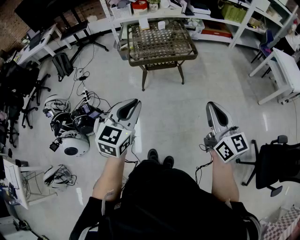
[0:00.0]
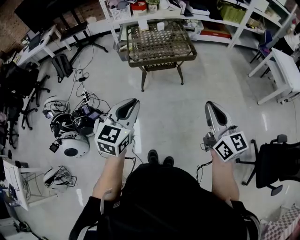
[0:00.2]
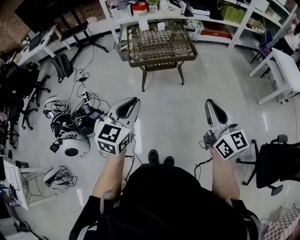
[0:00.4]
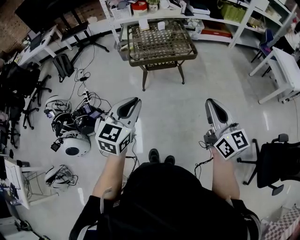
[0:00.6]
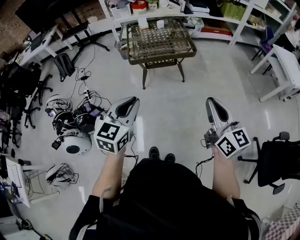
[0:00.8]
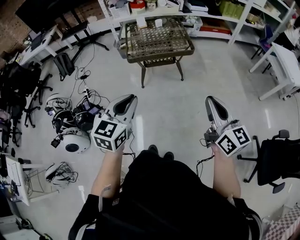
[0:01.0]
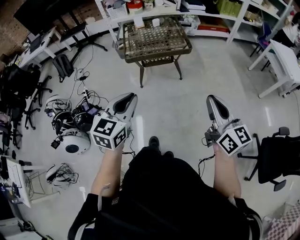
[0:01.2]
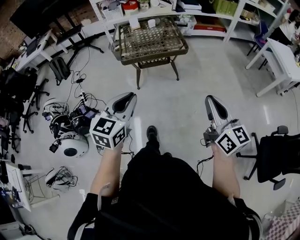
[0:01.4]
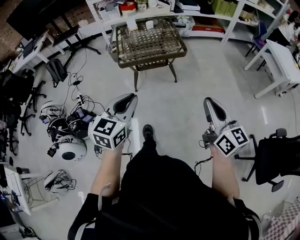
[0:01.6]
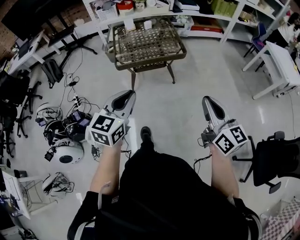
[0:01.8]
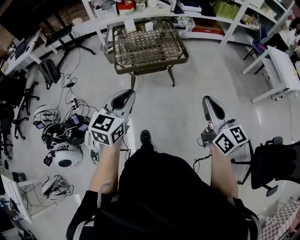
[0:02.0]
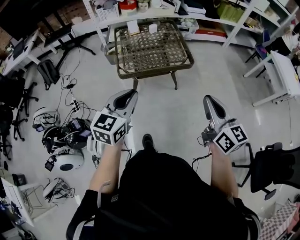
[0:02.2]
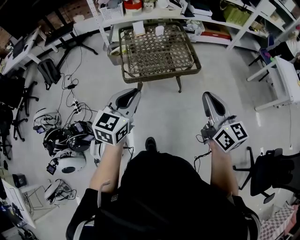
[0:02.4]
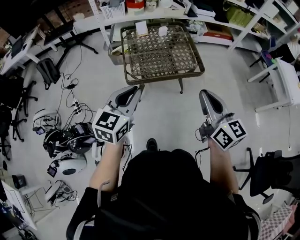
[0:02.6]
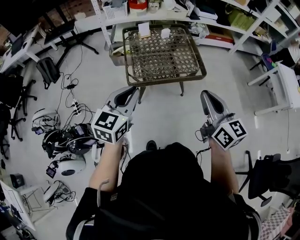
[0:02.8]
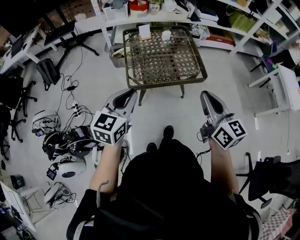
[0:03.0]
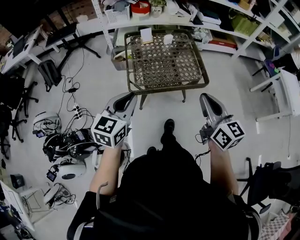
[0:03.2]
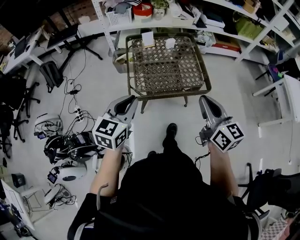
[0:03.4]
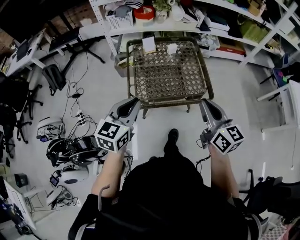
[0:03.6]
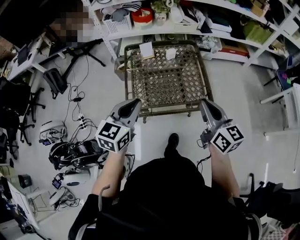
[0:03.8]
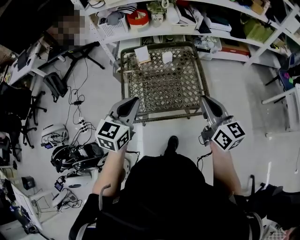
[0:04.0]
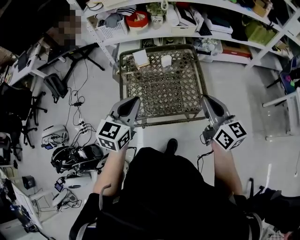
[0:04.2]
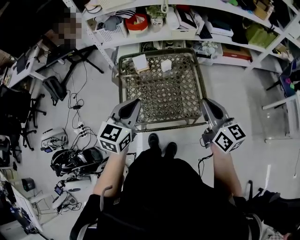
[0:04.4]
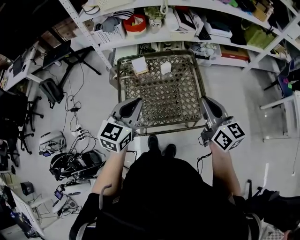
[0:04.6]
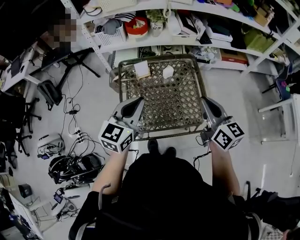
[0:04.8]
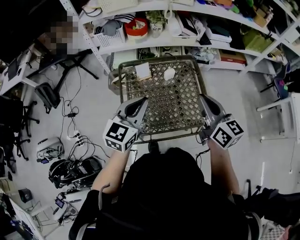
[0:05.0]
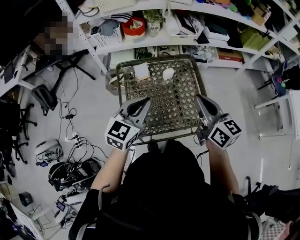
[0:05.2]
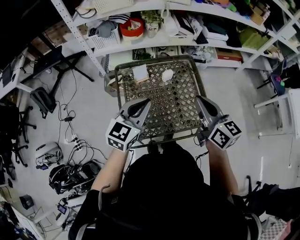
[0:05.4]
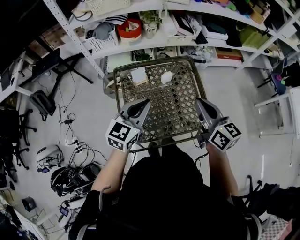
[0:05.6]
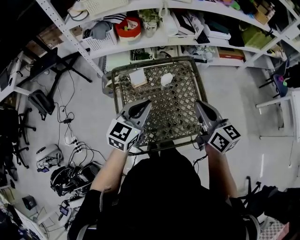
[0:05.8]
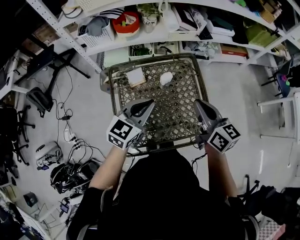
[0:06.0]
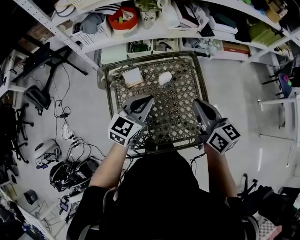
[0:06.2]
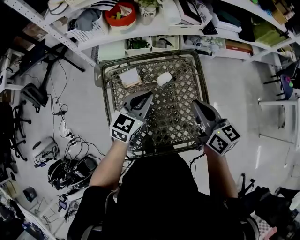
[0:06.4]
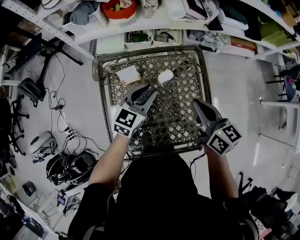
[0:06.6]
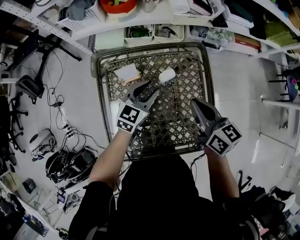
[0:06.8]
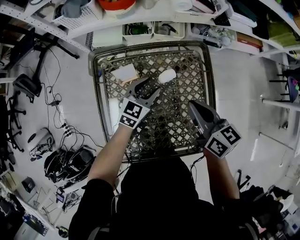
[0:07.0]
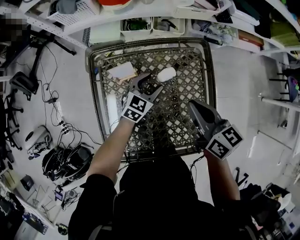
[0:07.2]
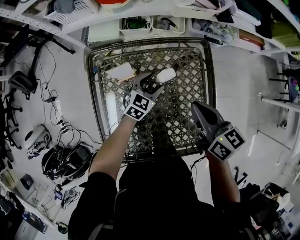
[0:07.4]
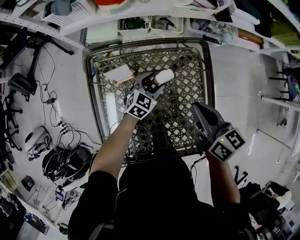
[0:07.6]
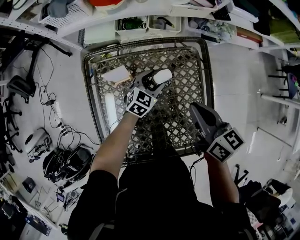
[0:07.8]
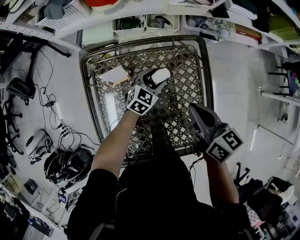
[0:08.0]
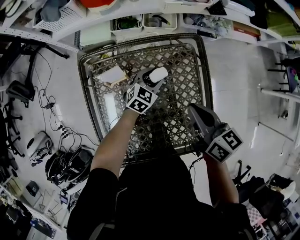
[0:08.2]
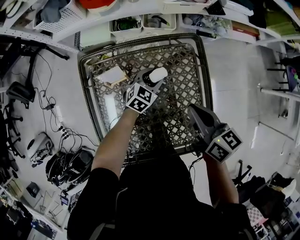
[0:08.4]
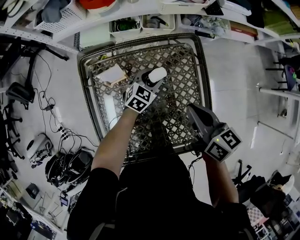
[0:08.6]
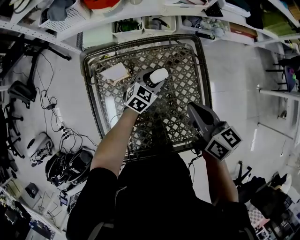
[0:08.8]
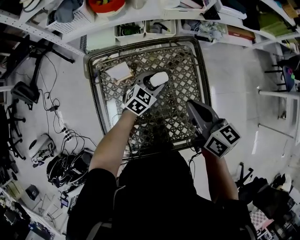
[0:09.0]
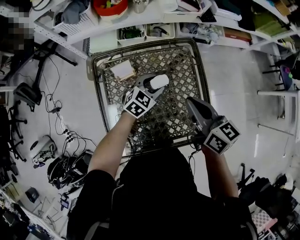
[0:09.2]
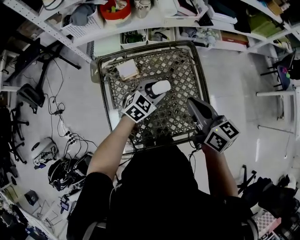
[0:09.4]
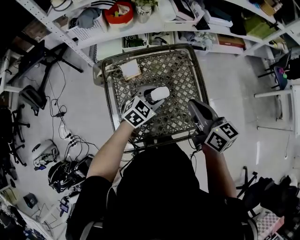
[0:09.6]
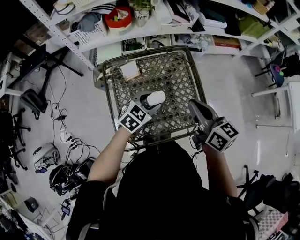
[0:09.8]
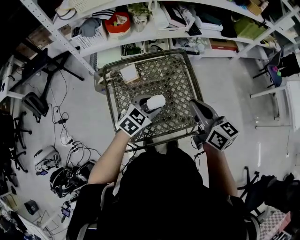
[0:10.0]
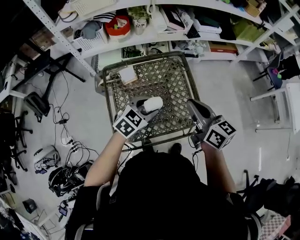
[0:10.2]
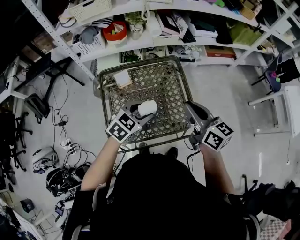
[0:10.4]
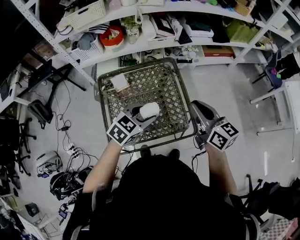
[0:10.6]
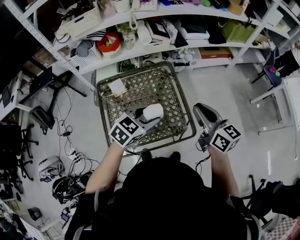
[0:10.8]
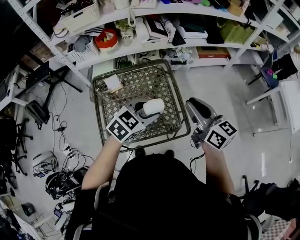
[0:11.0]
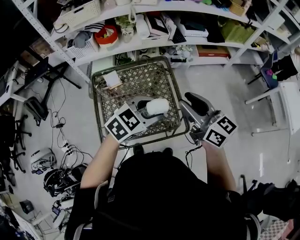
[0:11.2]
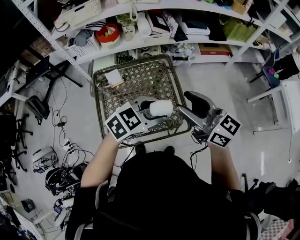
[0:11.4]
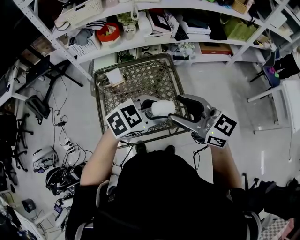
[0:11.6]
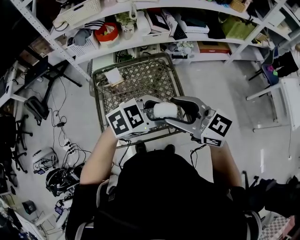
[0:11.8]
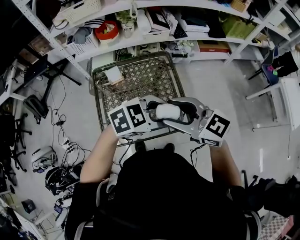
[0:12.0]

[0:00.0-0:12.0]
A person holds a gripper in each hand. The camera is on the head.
0:00.0 to 0:01.6: The left gripper moves about 5 cm, while the right gripper moves to the right, approximately 5 cm.
0:01.6 to 0:03.0: Both grippers move forward and to the left, some 35 cm.
0:03.0 to 0:04.4: The grippers both shift forward by some 30 cm.
0:04.4 to 0:06.0: The left gripper moves forward, some 15 cm. The right gripper moves forward and to the left, roughly 15 cm.
0:06.0 to 0:07.6: The right gripper goes roughly 15 cm downward and forward. The left gripper moves downward and forward, some 35 cm, and opens its fingers.
0:07.6 to 0:09.0: The left gripper shifts by some 5 cm.
0:09.0 to 0:10.4: The left gripper heads upward and backward, covering approximately 30 cm, while the right gripper shifts roughly 20 cm upward, backward and to the right.
0:10.4 to 0:12.0: The left gripper moves some 20 cm, and turns by roughly 30 degrees; the right gripper changes place by about 10 cm, rotates about 40 degrees, and opens.

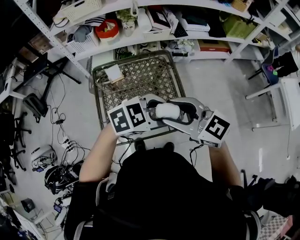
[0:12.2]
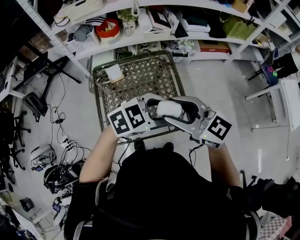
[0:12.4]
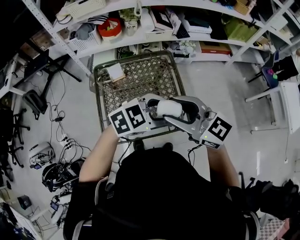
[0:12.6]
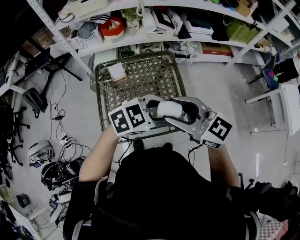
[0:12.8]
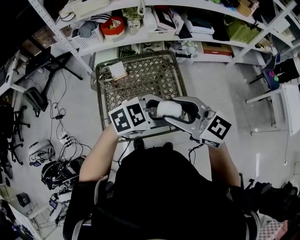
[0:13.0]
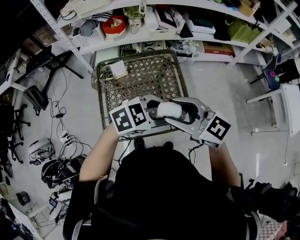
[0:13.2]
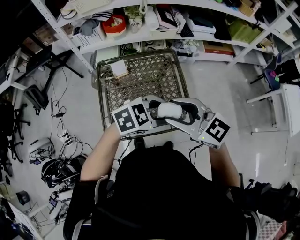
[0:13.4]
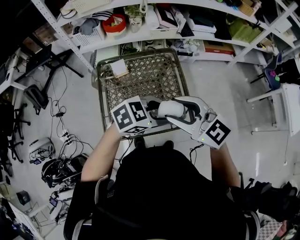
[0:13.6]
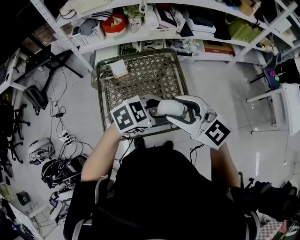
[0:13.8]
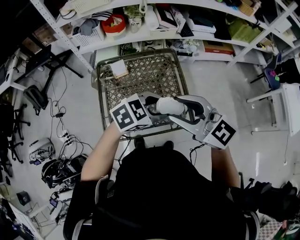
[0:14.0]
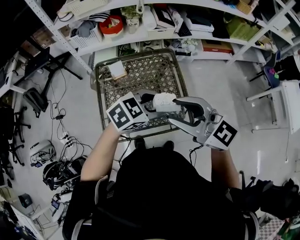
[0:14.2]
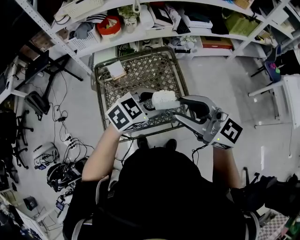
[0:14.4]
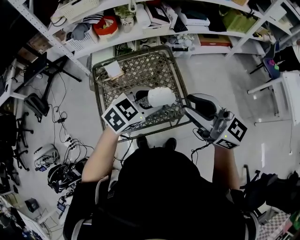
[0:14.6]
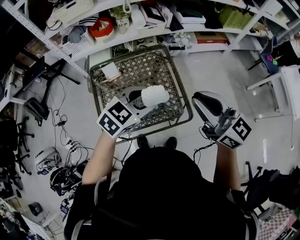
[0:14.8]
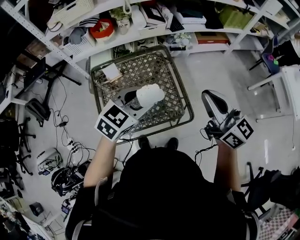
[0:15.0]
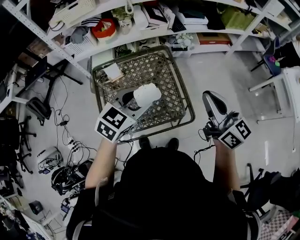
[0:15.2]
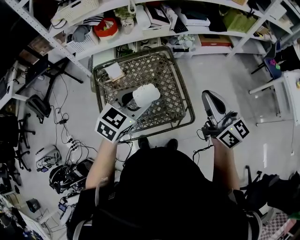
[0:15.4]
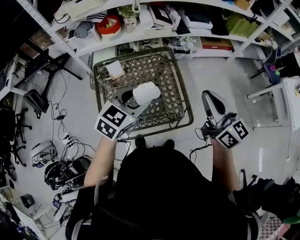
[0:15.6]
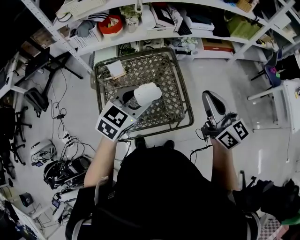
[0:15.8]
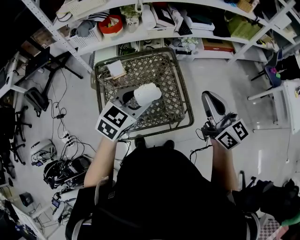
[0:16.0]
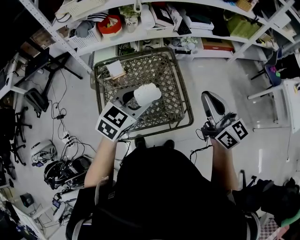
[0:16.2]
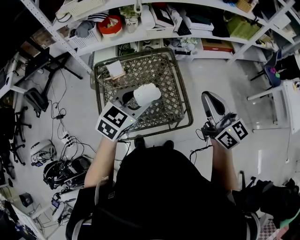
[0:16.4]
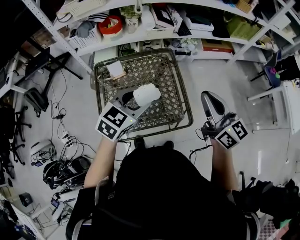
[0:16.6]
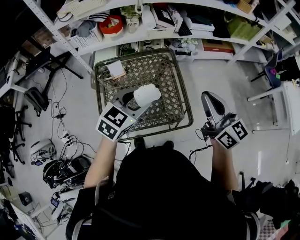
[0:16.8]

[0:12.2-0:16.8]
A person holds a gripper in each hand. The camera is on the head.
0:12.2 to 0:13.8: The grippers make only small movements.
0:13.8 to 0:15.2: The right gripper changes place by some 15 cm, turns by approximately 40 degrees, and closes. The left gripper ends up about 10 cm from where it was, and turns by some 30 degrees.
0:15.2 to 0:16.8: The grippers make only small movements.

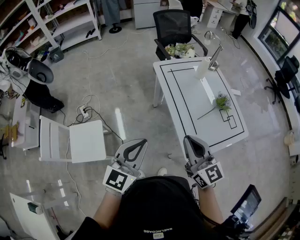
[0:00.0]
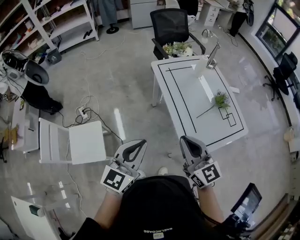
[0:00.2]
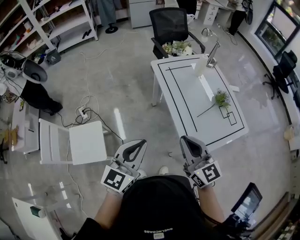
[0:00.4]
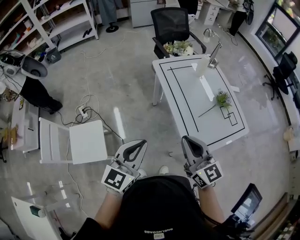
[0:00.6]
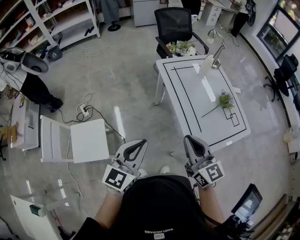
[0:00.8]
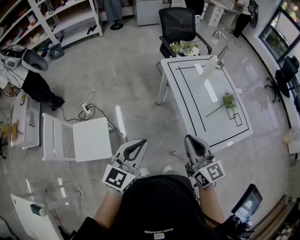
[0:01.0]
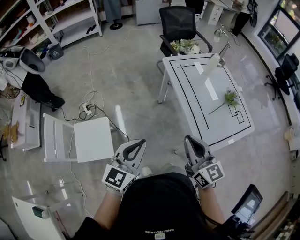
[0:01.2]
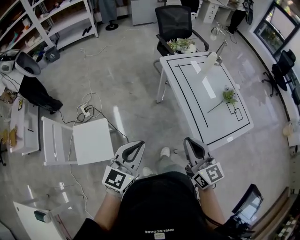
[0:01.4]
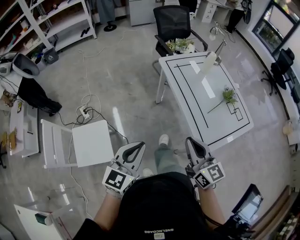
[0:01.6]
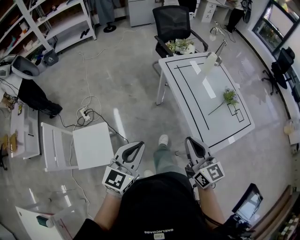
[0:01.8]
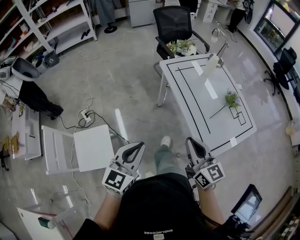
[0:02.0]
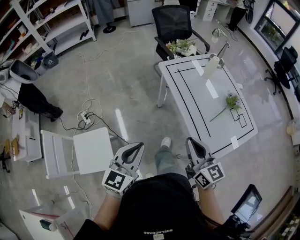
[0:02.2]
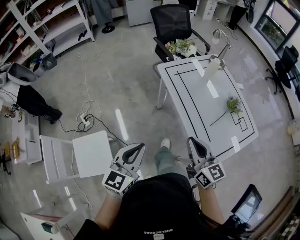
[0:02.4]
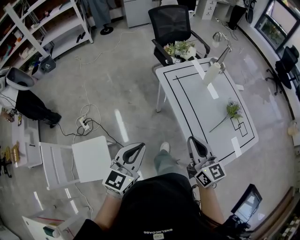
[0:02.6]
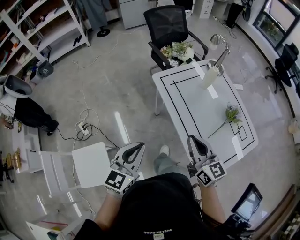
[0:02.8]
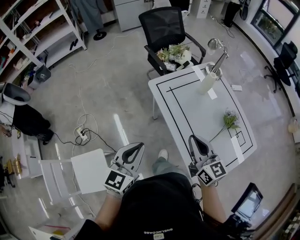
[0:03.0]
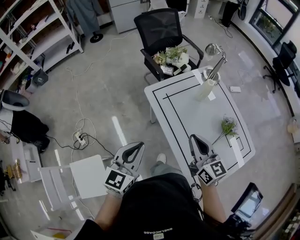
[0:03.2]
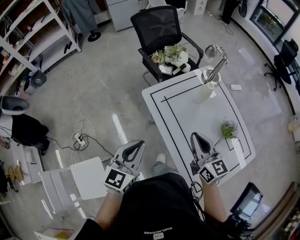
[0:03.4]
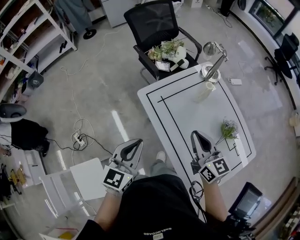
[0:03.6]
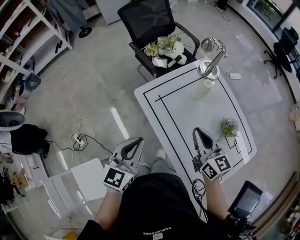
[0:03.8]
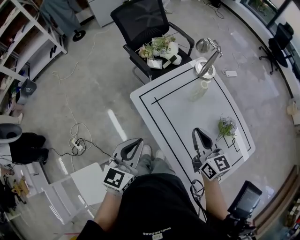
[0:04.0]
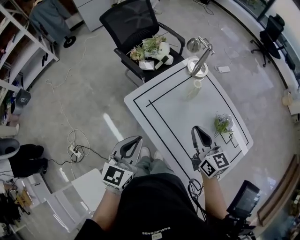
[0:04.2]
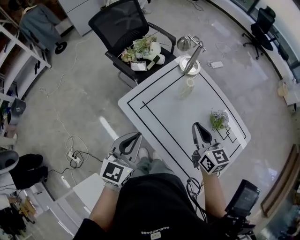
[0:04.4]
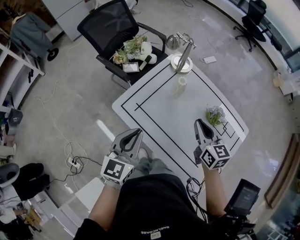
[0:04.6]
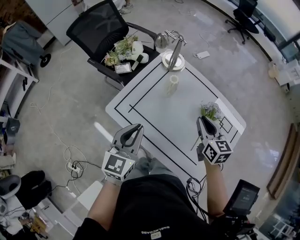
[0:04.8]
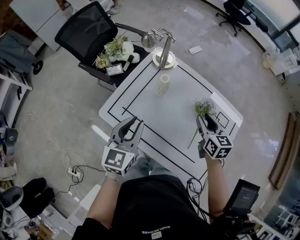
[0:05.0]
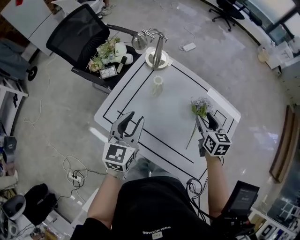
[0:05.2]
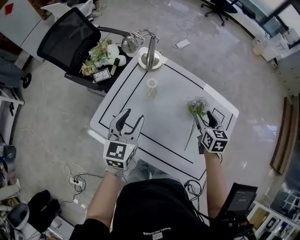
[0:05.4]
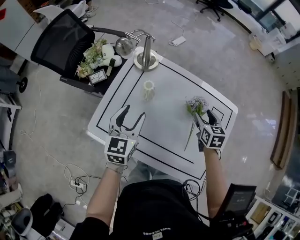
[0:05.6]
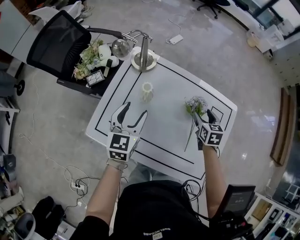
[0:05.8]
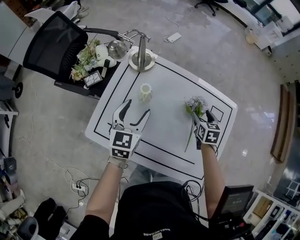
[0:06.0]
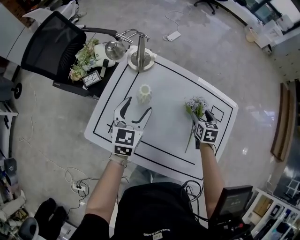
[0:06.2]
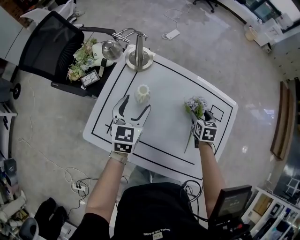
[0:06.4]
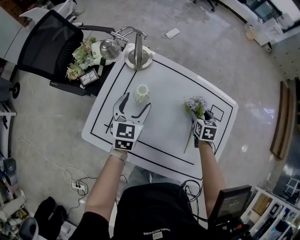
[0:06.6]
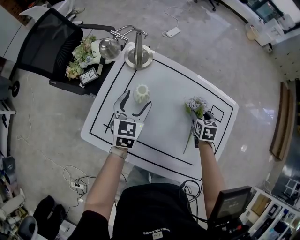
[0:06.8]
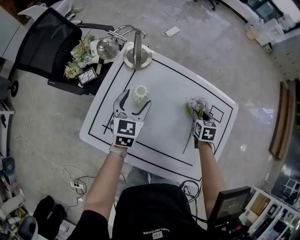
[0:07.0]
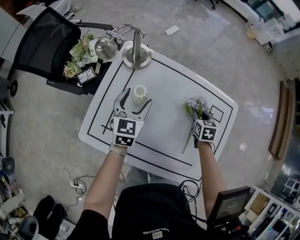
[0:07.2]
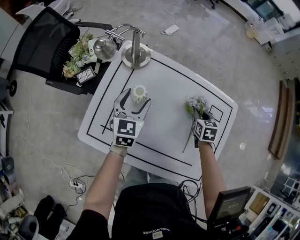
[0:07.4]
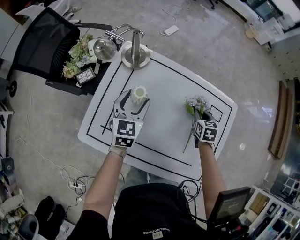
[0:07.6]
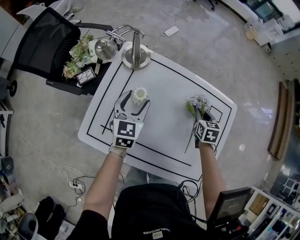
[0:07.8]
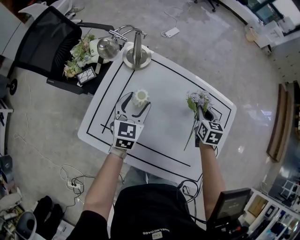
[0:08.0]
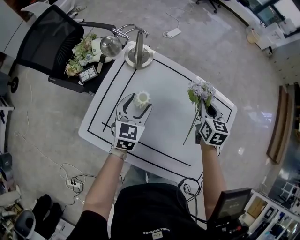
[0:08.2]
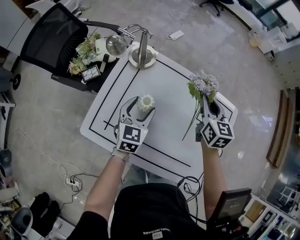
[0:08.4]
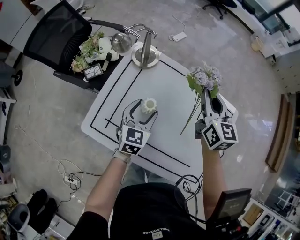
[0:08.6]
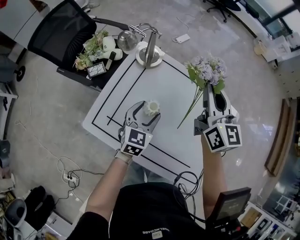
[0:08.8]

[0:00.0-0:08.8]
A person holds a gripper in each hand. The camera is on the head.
0:00.0 to 0:01.4: Both grippers travel together to the left, approximately 10 cm.
0:01.4 to 0:03.0: Both grippers move forward, approximately 25 cm.
0:03.0 to 0:04.4: The left gripper is displaced forward by roughly 25 cm, while the right gripper goes approximately 20 cm forward and to the right, and rotates some 20 degrees.
0:04.4 to 0:05.8: The right gripper moves approximately 25 cm, turns by some 50 degrees, and opens its fingers. The left gripper changes place by roughly 25 cm, and opens up.
0:05.8 to 0:07.4: The left gripper goes some 10 cm forward and downward; the right gripper shifts roughly 5 cm downward, and closes up.
0:07.4 to 0:08.8: The right gripper moves upward and to the left, approximately 35 cm, and tips its fingers upward by some 50 degrees. Meanwhile the left gripper heads backward, covering approximately 5 cm.
